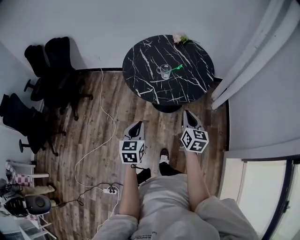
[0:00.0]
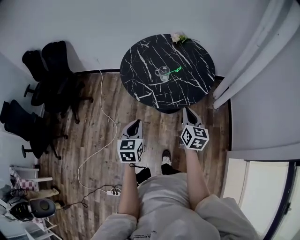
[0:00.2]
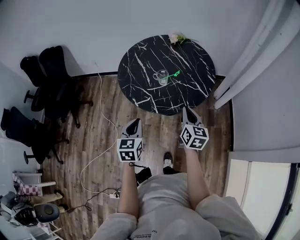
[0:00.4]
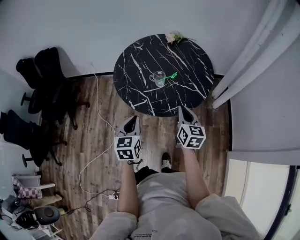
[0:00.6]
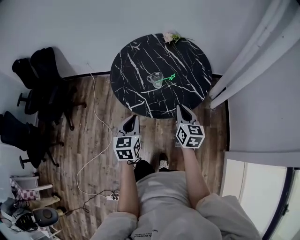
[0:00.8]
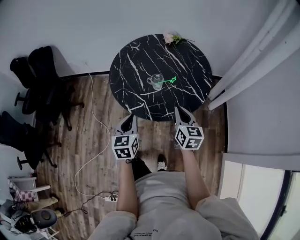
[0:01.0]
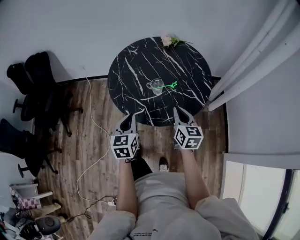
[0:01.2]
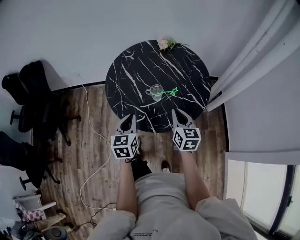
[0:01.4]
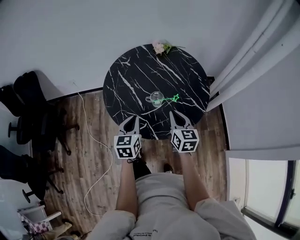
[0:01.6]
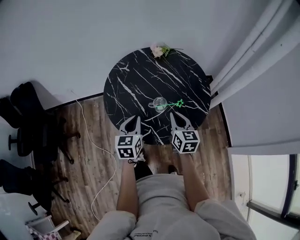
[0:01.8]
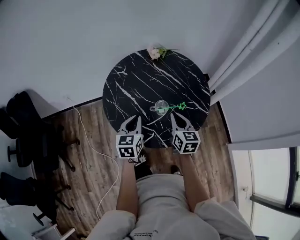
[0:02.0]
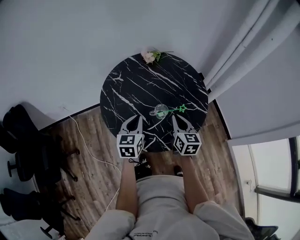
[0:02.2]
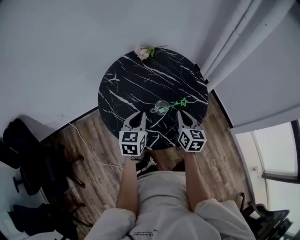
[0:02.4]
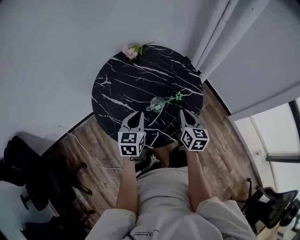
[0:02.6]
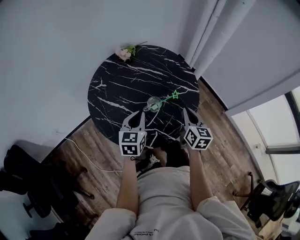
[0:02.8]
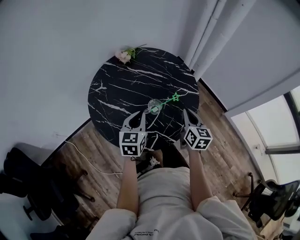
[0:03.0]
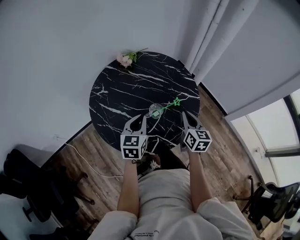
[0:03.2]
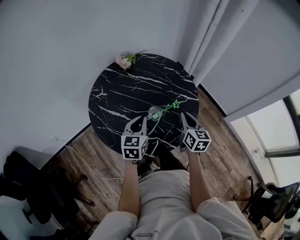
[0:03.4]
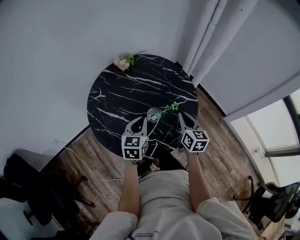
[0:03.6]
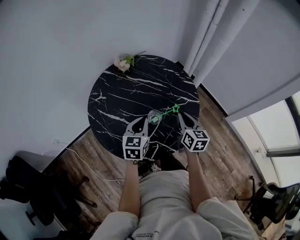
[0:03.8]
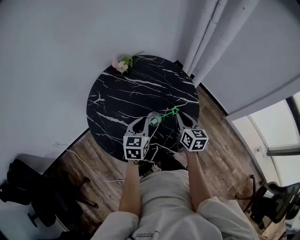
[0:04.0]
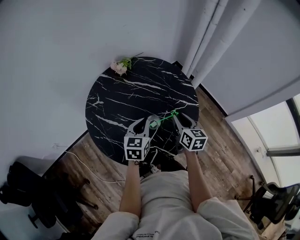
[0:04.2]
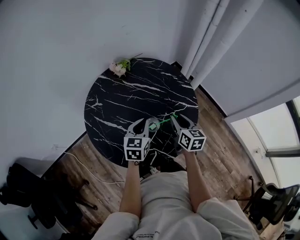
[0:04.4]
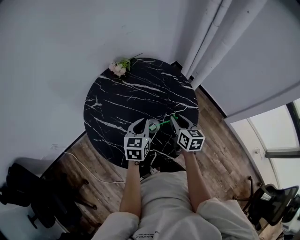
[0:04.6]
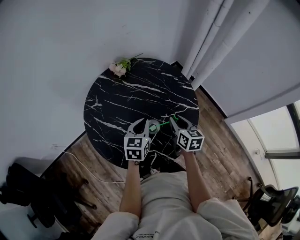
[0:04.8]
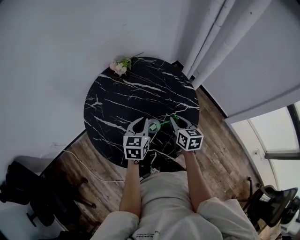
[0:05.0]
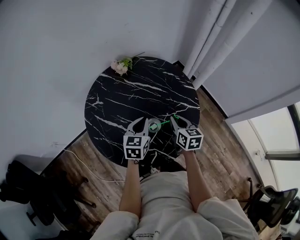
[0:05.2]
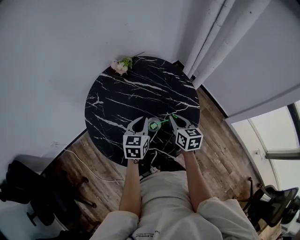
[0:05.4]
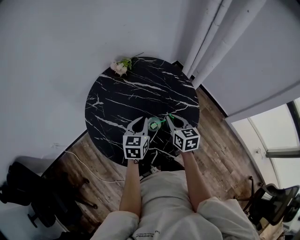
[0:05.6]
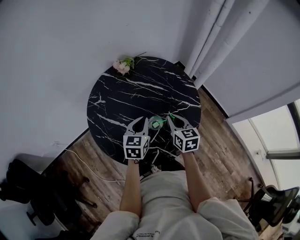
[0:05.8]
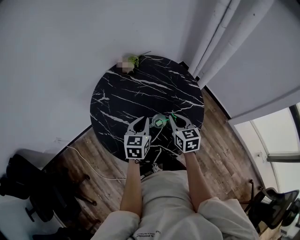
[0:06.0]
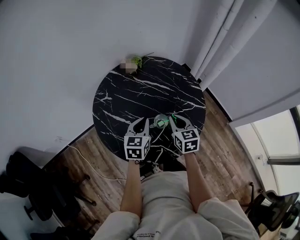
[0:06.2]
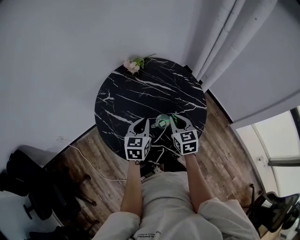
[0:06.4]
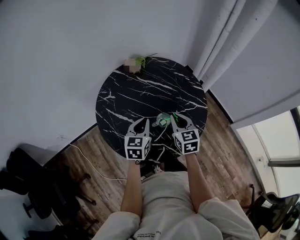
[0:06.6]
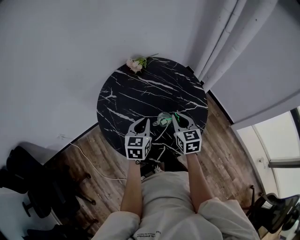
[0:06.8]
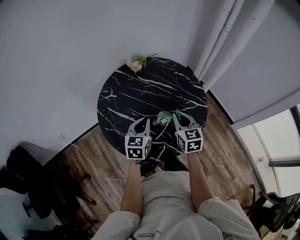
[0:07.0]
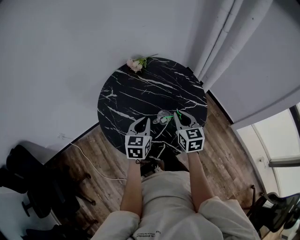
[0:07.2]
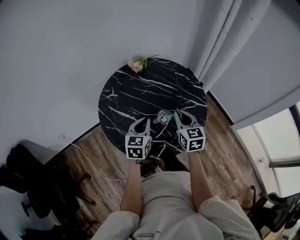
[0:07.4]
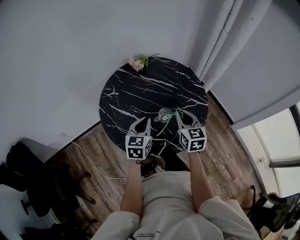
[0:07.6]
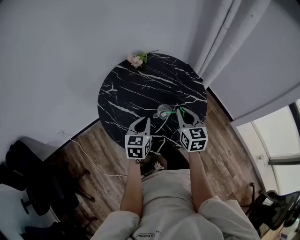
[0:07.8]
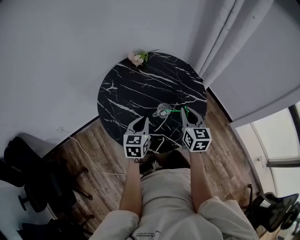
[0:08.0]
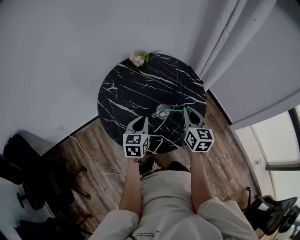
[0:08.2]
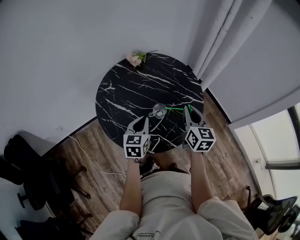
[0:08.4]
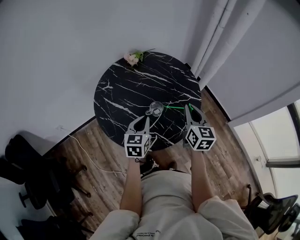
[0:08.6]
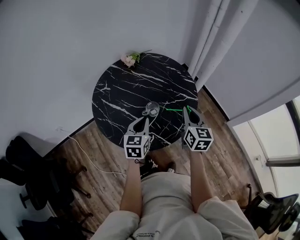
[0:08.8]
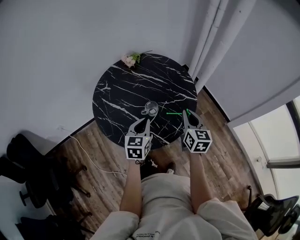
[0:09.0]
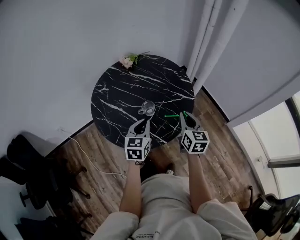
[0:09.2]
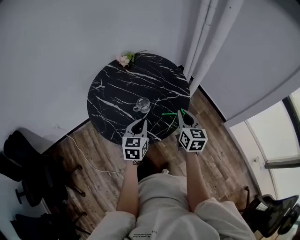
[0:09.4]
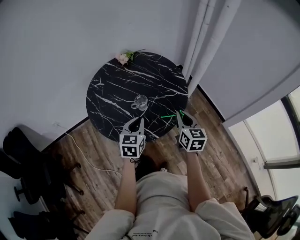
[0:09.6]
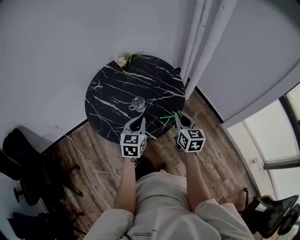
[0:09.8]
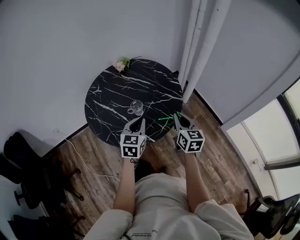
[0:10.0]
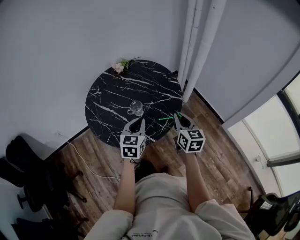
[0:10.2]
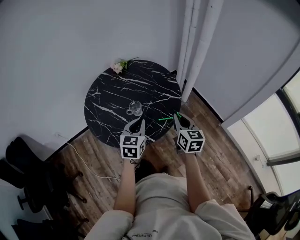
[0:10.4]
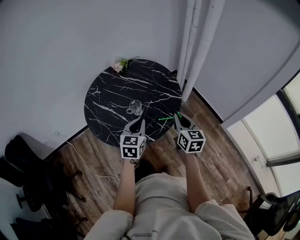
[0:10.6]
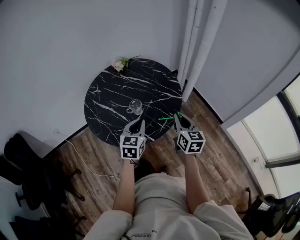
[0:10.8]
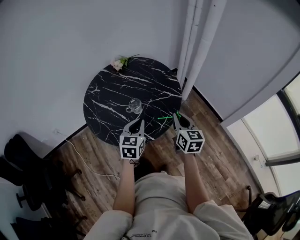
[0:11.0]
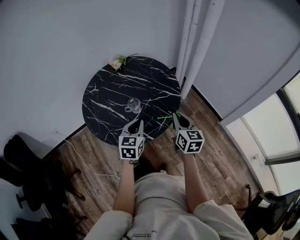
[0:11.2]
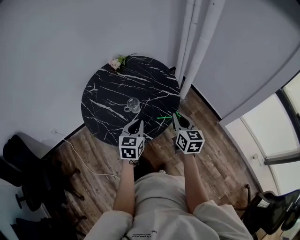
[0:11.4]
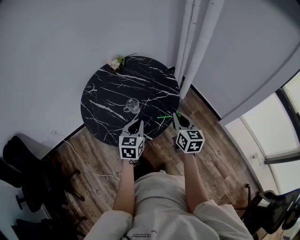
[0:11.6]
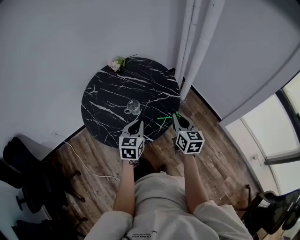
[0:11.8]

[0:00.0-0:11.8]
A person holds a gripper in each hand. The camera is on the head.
0:00.0 to 0:01.4: The two grippers go approximately 25 cm forward.
0:01.4 to 0:03.0: The left gripper ends up roughly 20 cm from where it was, and turns by approximately 40 degrees. The right gripper turns by some 40 degrees.
0:03.0 to 0:04.4: Both grippers travel together forward, roughly 10 cm. The right gripper opens.
0:04.4 to 0:06.0: The right gripper goes approximately 5 cm to the left.
0:06.0 to 0:07.4: The right gripper goes roughly 5 cm upward. The left gripper goes roughly 5 cm backward.
0:07.4 to 0:08.8: The left gripper shifts some 5 cm to the right. The right gripper travels to the right by approximately 10 cm.
0:08.8 to 0:10.4: Both grippers travel together to the right and backward, roughly 10 cm.
0:10.4 to 0:11.8: The grippers move only a little.

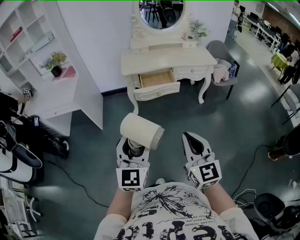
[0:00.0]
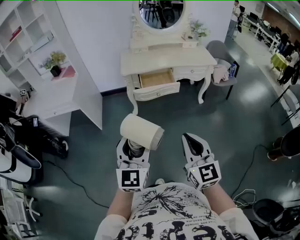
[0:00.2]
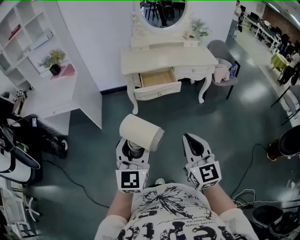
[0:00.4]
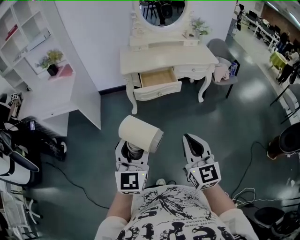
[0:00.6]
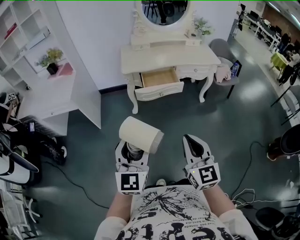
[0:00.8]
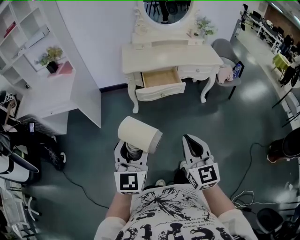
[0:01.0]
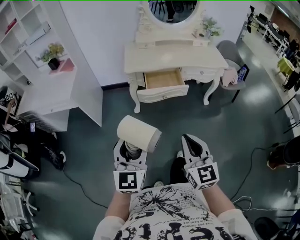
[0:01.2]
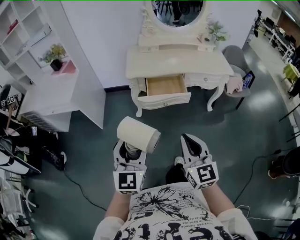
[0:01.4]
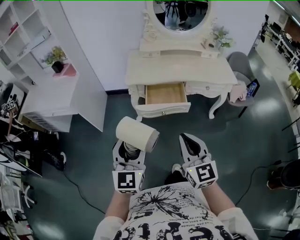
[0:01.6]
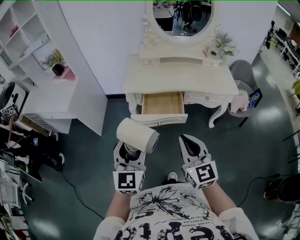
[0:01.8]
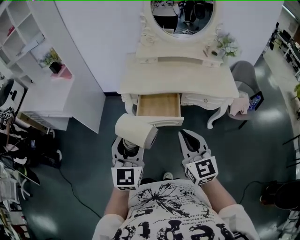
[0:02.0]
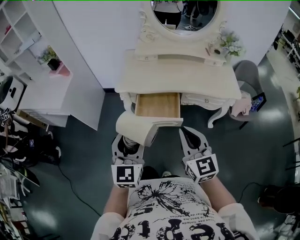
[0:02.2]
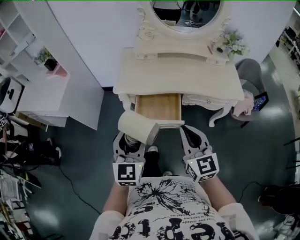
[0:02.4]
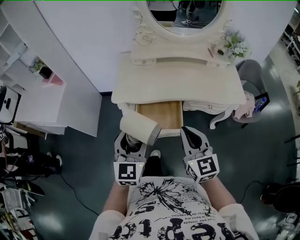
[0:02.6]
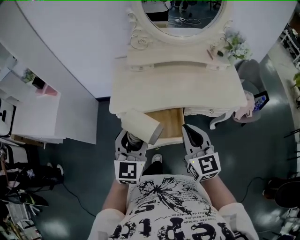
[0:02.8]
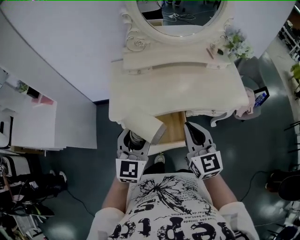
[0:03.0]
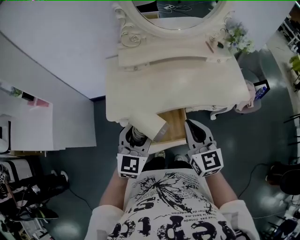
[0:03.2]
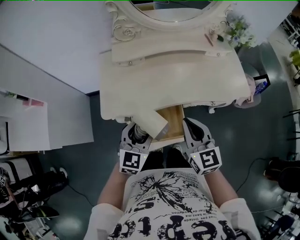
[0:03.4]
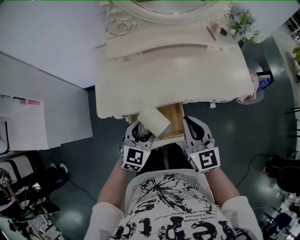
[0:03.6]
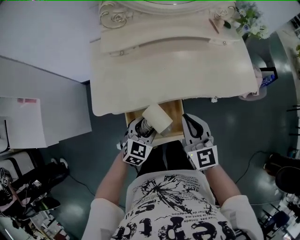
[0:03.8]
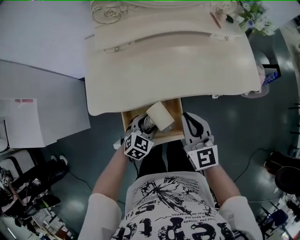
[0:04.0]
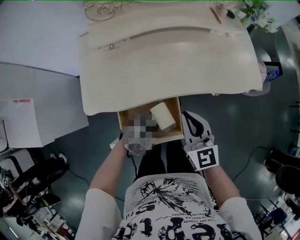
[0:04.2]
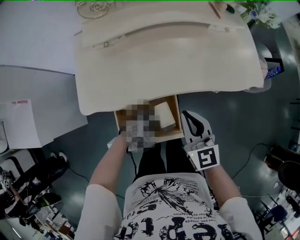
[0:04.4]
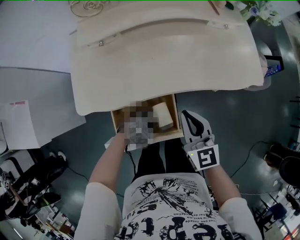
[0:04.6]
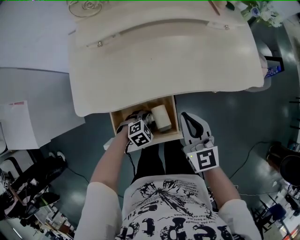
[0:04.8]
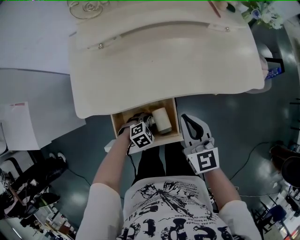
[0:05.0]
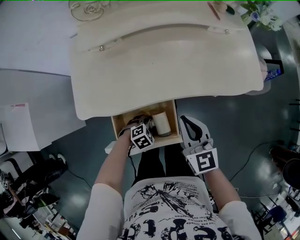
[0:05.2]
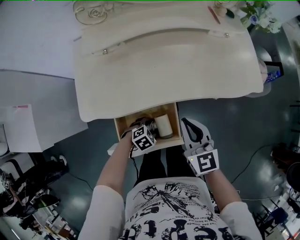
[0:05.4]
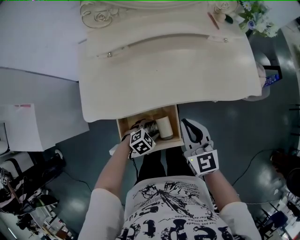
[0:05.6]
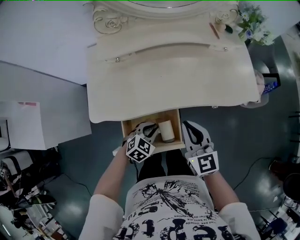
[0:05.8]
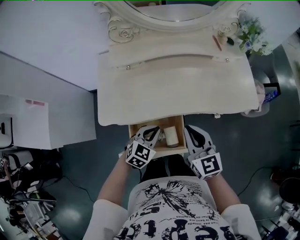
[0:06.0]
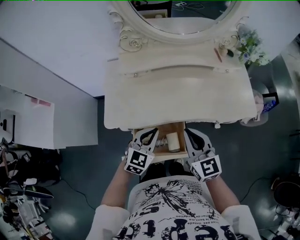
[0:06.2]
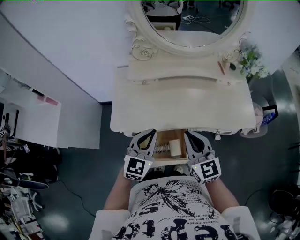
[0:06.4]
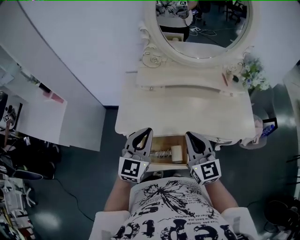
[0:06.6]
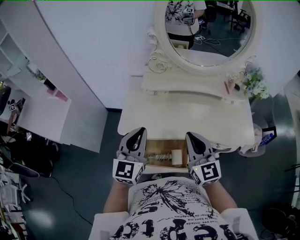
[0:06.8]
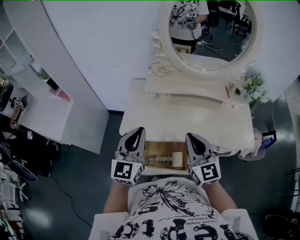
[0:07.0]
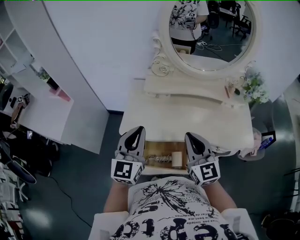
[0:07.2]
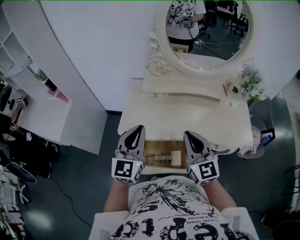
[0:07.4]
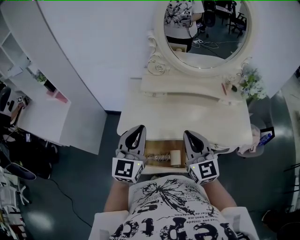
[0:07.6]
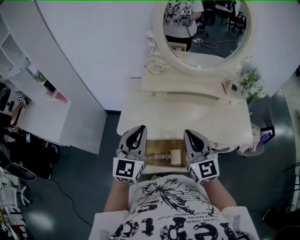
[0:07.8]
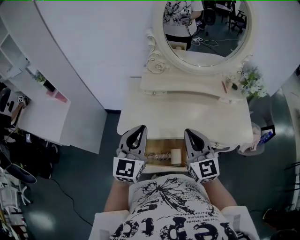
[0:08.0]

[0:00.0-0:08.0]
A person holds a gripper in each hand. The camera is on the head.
0:00.0 to 0:01.6: The grippers both shift forward by approximately 25 cm.
0:01.6 to 0:03.2: The pair of grippers is taken forward, roughly 40 cm. The left gripper changes its angle by approximately 20 degrees.
0:03.2 to 0:04.8: The left gripper moves downward, about 35 cm, and angles its fingers downward, by about 50 degrees, while the right gripper shifts roughly 15 cm downward.
0:04.8 to 0:06.4: The left gripper moves upward, some 35 cm, angles its fingers upward, by some 50 degrees, and closes. The right gripper heads upward, covering about 15 cm.
0:06.4 to 0:08.0: The right gripper heads upward, covering approximately 5 cm. Meanwhile the left gripper is displaced upward and to the left by approximately 15 cm.

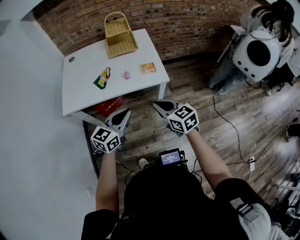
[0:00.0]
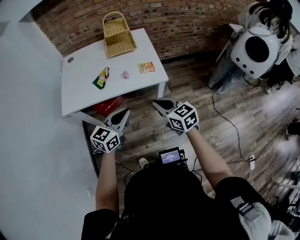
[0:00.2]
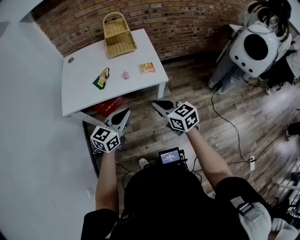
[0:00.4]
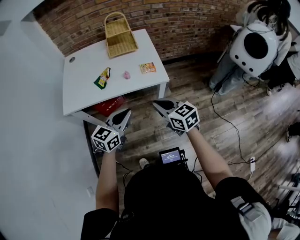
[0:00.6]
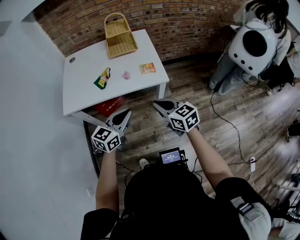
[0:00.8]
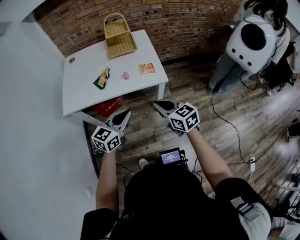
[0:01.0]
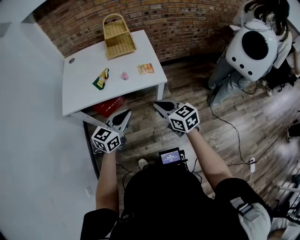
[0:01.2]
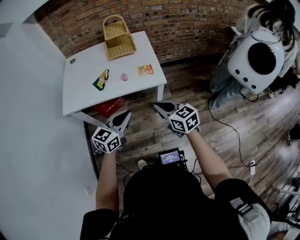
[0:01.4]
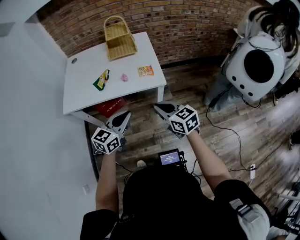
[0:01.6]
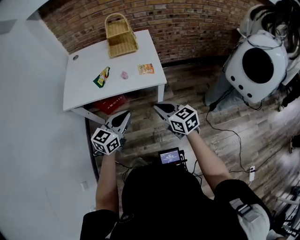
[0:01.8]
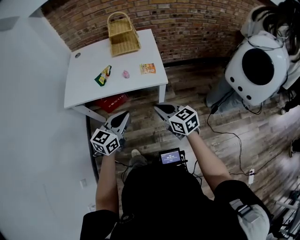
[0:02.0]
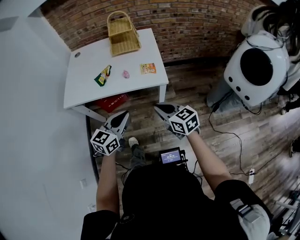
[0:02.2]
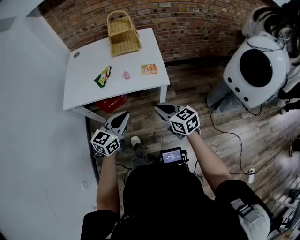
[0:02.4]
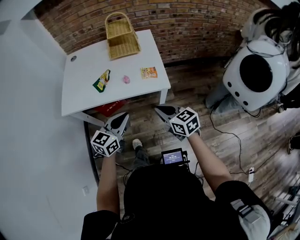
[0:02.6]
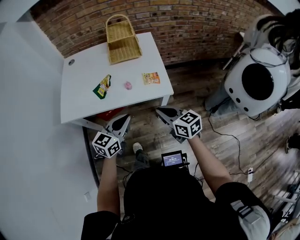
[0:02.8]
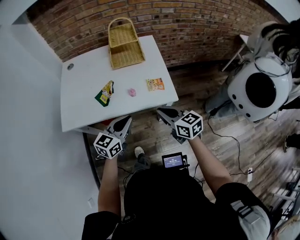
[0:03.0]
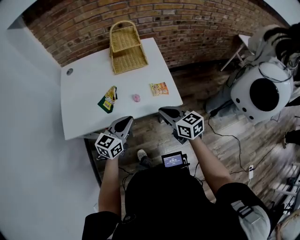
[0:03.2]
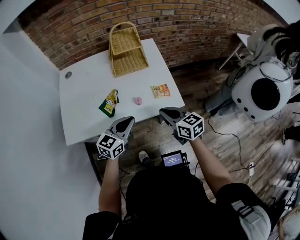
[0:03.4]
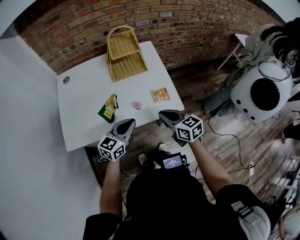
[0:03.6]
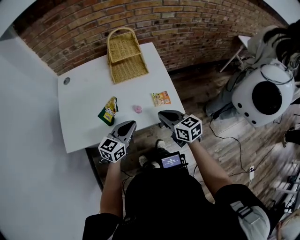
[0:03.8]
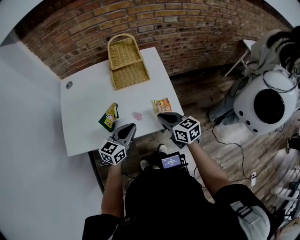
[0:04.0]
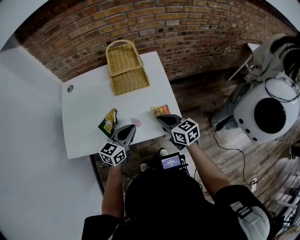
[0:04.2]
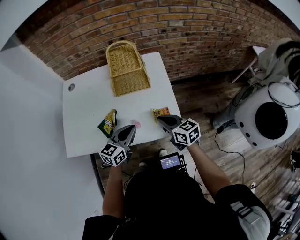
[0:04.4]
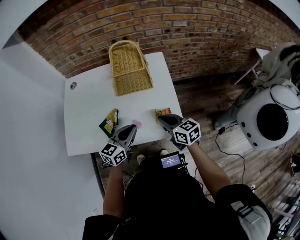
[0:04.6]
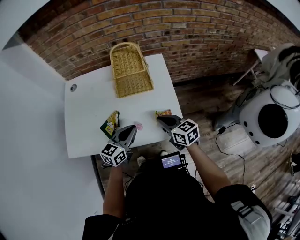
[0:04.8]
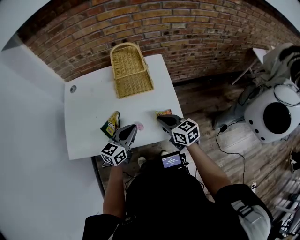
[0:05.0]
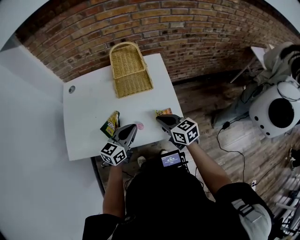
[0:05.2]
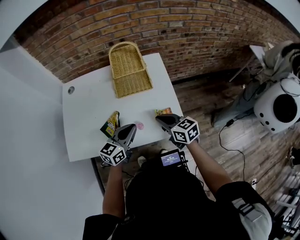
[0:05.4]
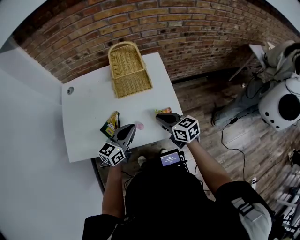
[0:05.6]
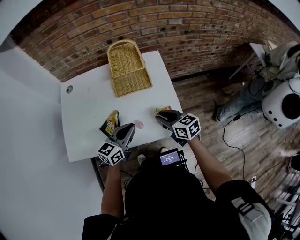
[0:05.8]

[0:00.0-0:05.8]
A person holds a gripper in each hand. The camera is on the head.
0:00.0 to 0:01.4: The grippers stay close to where they were, moving slightly.
0:01.4 to 0:02.8: The grippers both shift forward by about 10 cm.
0:02.8 to 0:04.4: Both grippers move forward, some 20 cm.
0:04.4 to 0:05.8: There are only small adjustments of the grippers.
